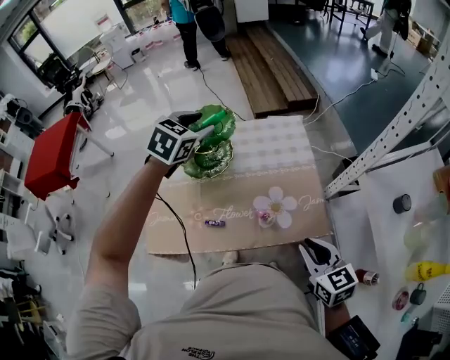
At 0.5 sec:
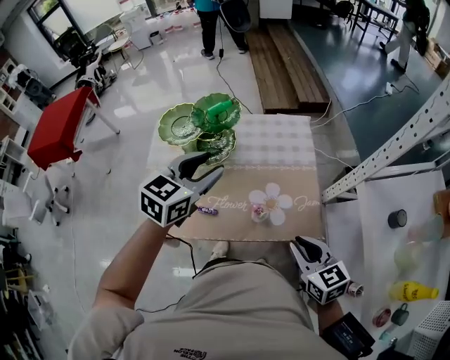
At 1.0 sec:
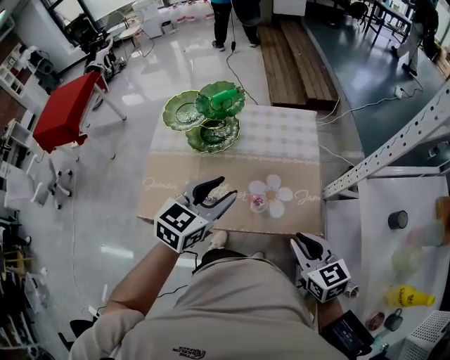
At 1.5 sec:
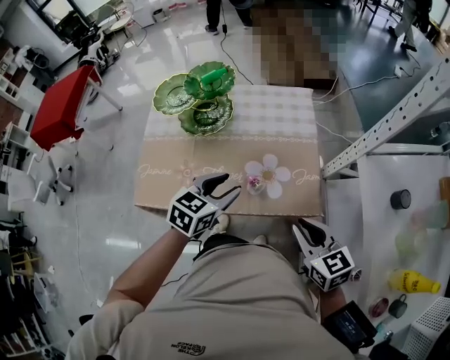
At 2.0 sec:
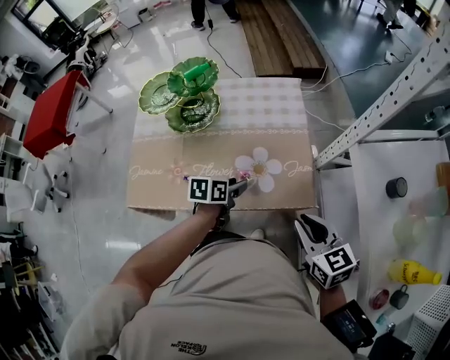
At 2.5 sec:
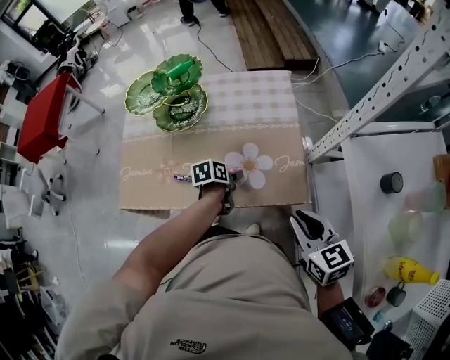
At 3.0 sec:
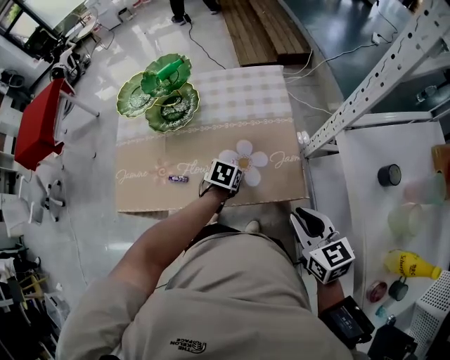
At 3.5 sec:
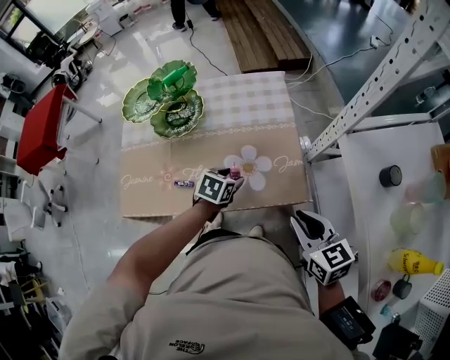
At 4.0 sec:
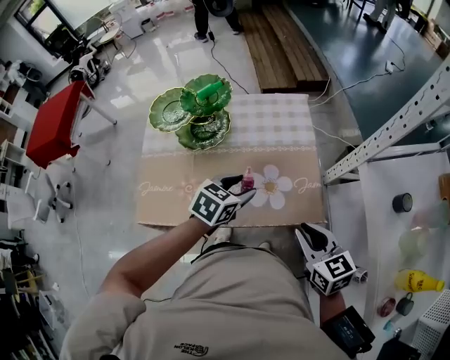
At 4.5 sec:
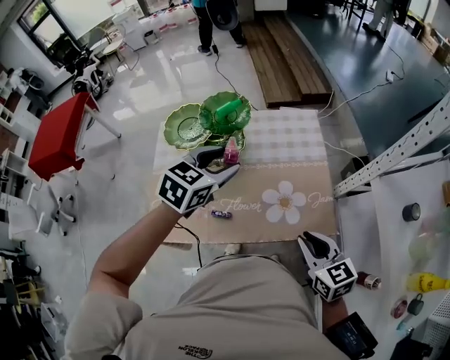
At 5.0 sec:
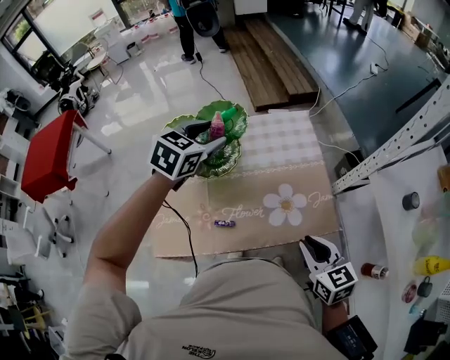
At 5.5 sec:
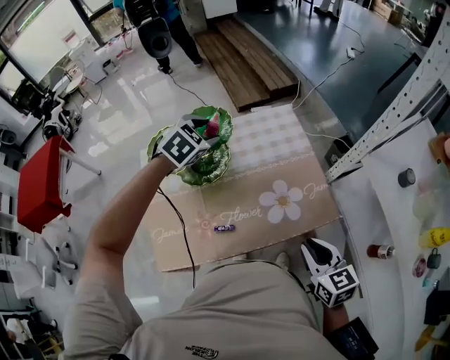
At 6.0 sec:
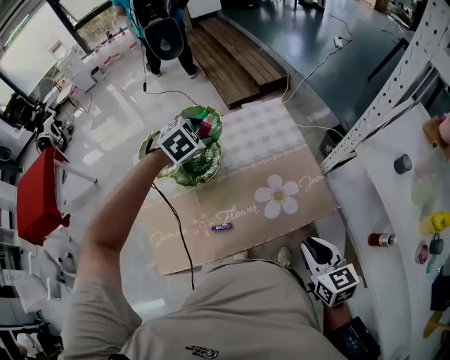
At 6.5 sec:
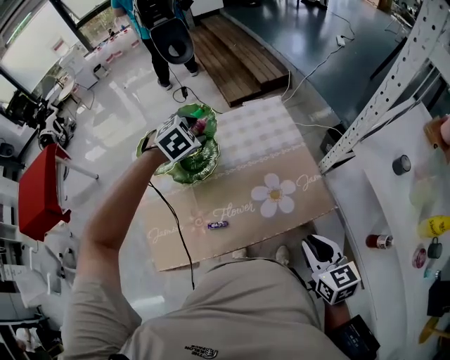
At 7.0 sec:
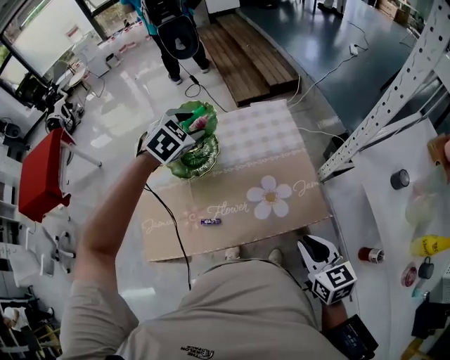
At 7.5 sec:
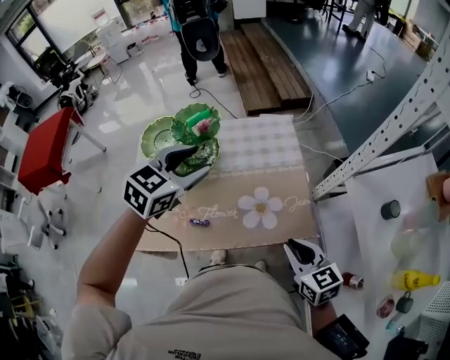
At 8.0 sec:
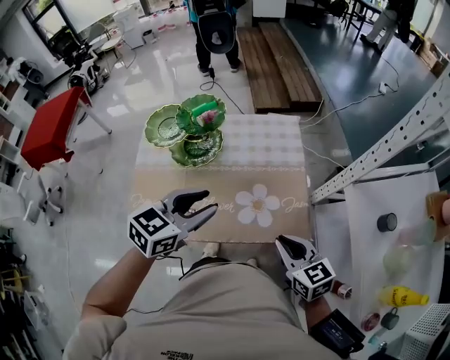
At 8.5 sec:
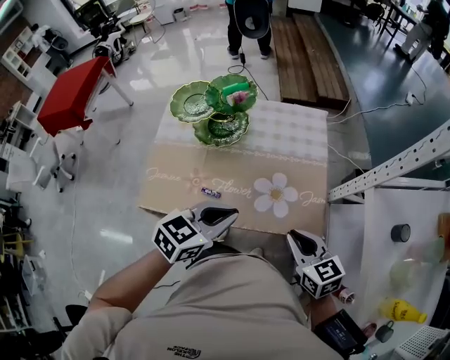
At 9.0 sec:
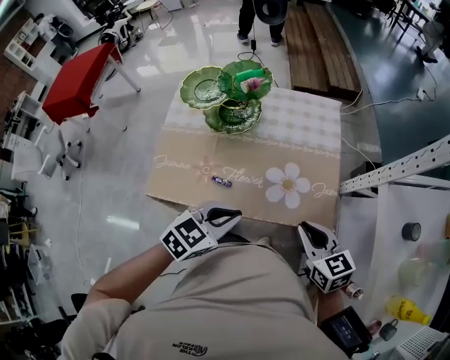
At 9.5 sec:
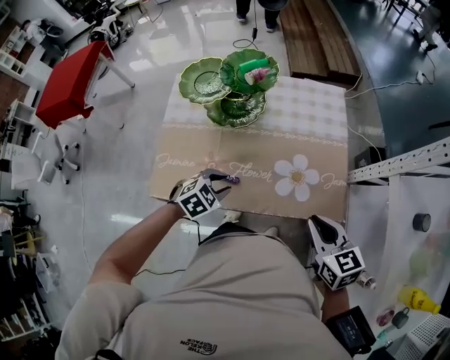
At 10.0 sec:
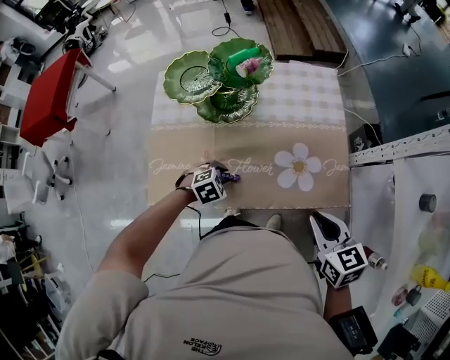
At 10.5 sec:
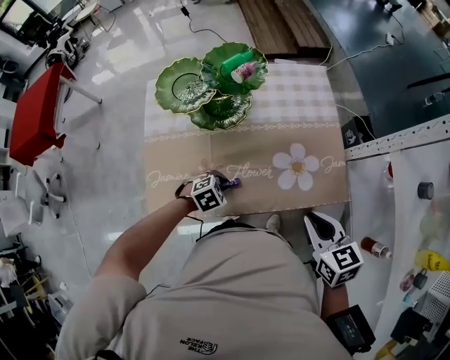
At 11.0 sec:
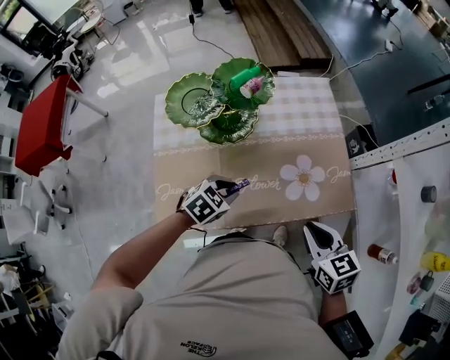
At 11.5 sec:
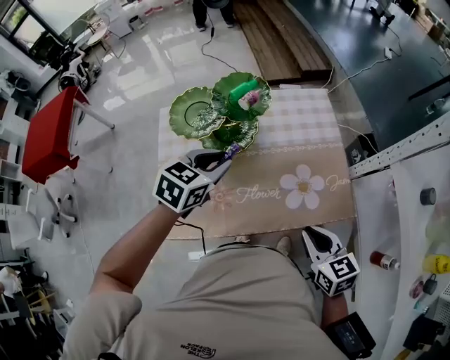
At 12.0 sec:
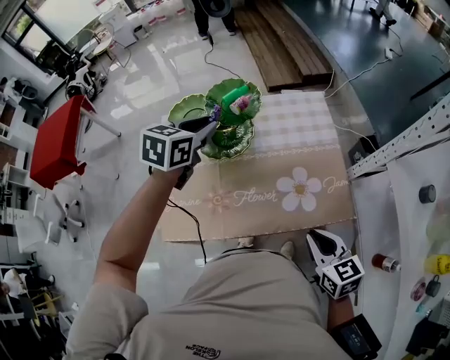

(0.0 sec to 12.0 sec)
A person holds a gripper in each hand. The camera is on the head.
0.0 sec - 2.0 sec: The right gripper is displaced to the right by approximately 5 cm, while the left gripper heads downward, backward and to the right, covering roughly 40 cm, and rotates around the line of its fingers by about 60 degrees, counterclockwise from behind.
2.0 sec - 4.0 sec: The left gripper shifts some 10 cm upward, and turns by about 40 degrees.
4.0 sec - 6.0 sec: The left gripper heads forward and to the left, covering roughly 25 cm, and twists roughly 50 degrees clockwise, seen from behind; the right gripper goes some 10 cm to the left, and turns by some 20 degrees.
6.0 sec - 8.0 sec: The left gripper heads backward, covering approximately 25 cm, and rotates around the line of its fingers by some 40 degrees, counterclockwise from behind. Meanwhile the right gripper moves forward and to the right, roughly 5 cm, and swivels some 30 degrees.
8.0 sec - 10.0 sec: The right gripper goes approximately 5 cm to the left. Meanwhile the left gripper heads downward, covering about 30 cm, points its fingers some 40 degrees further downward, and closes and opens again.
10.0 sec - 12.0 sec: The left gripper shifts approximately 35 cm upward and forward, and tilts its fingers some 30 degrees upward.

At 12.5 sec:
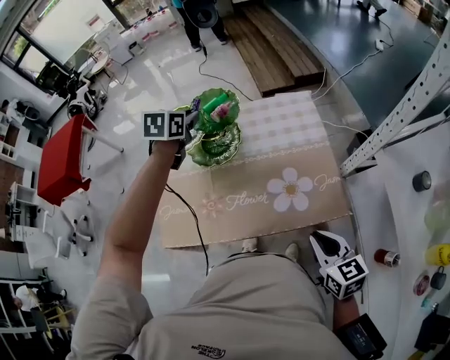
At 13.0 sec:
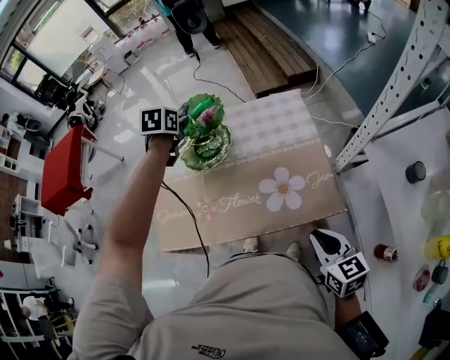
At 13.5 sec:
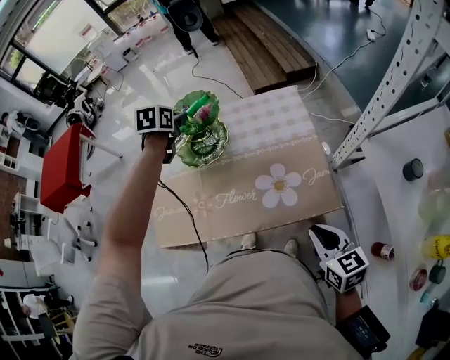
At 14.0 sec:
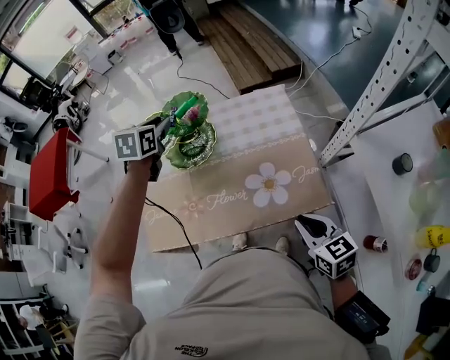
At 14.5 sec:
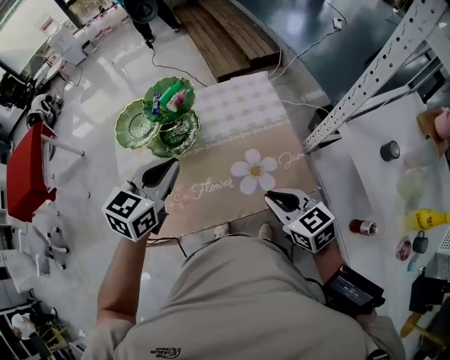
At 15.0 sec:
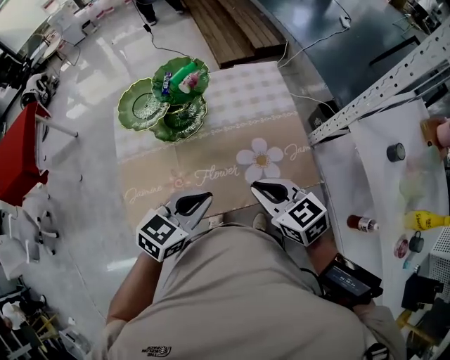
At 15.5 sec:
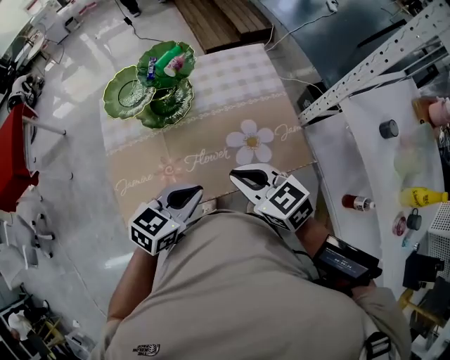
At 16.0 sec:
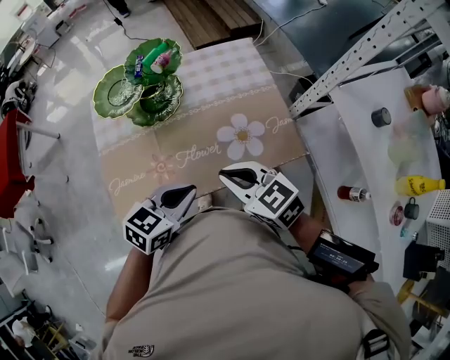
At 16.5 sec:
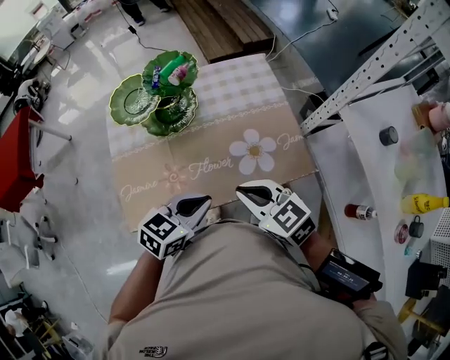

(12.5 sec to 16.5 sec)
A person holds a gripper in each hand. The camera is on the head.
12.5 sec - 14.5 sec: The left gripper heads backward, covering roughly 20 cm, and rotates some 30 degrees. Meanwhile the right gripper is displaced forward by approximately 5 cm.
14.5 sec - 16.5 sec: The right gripper heads to the left, covering roughly 10 cm, while the left gripper travels backward and downward by about 20 cm, and turns by approximately 20 degrees.

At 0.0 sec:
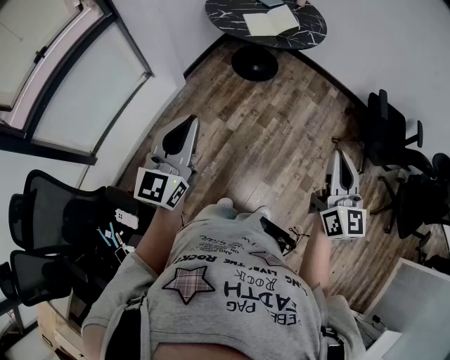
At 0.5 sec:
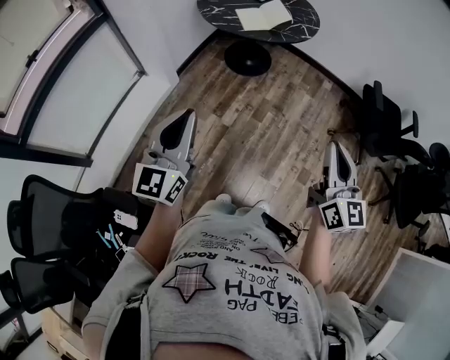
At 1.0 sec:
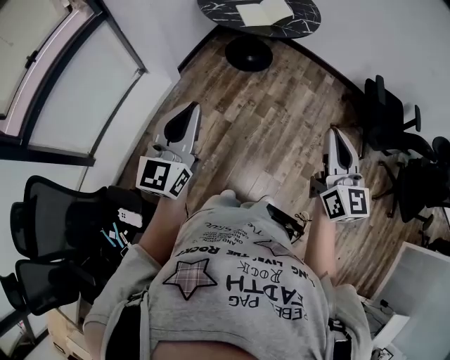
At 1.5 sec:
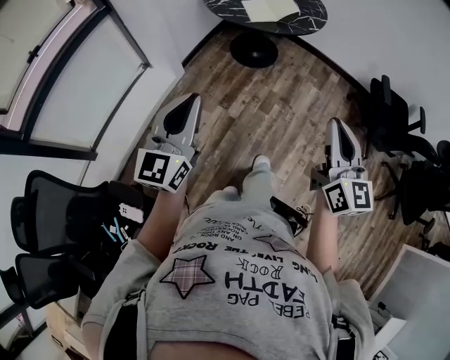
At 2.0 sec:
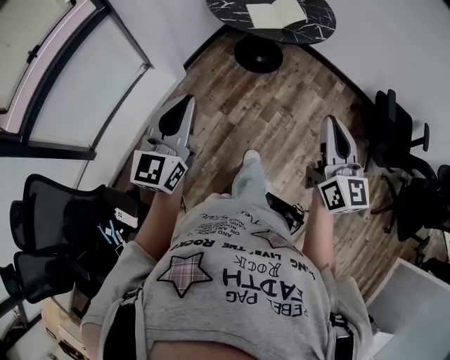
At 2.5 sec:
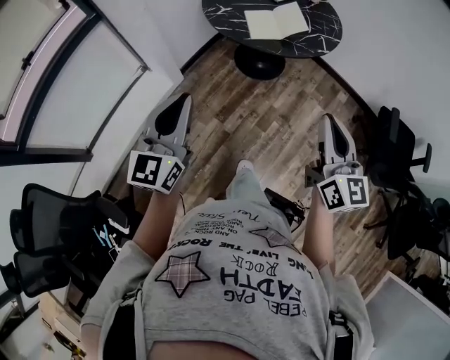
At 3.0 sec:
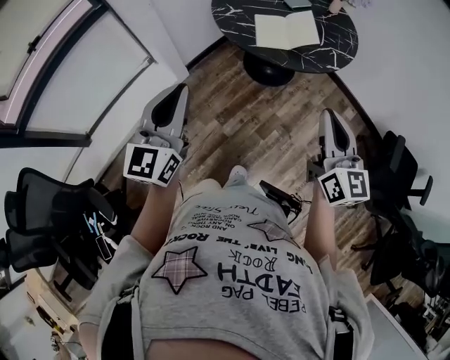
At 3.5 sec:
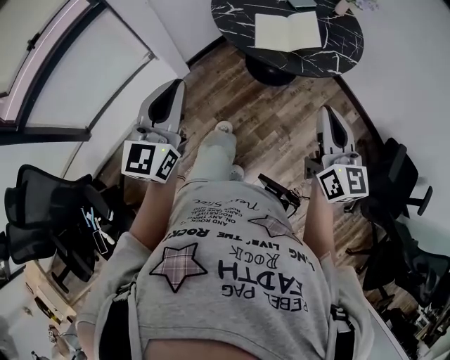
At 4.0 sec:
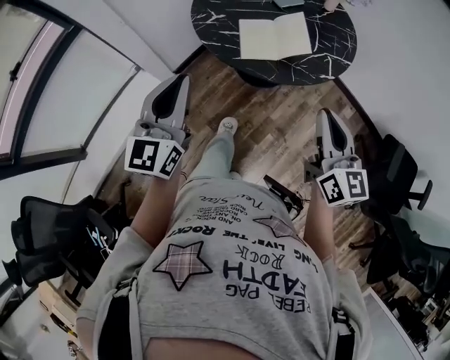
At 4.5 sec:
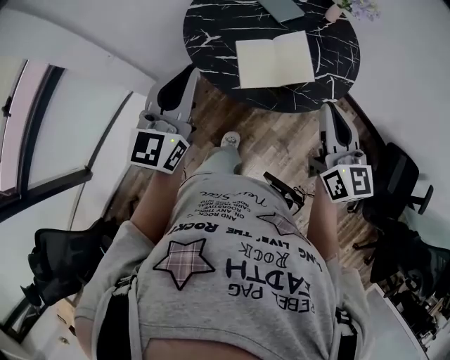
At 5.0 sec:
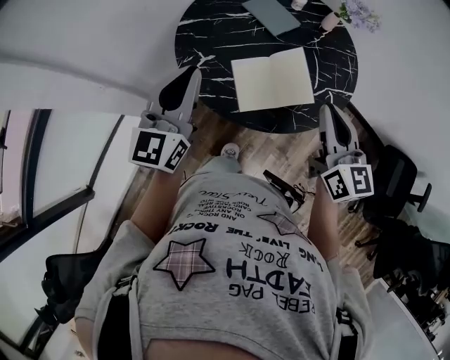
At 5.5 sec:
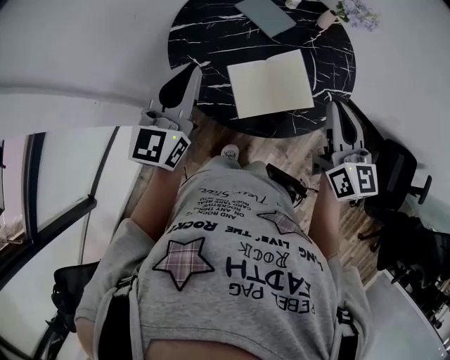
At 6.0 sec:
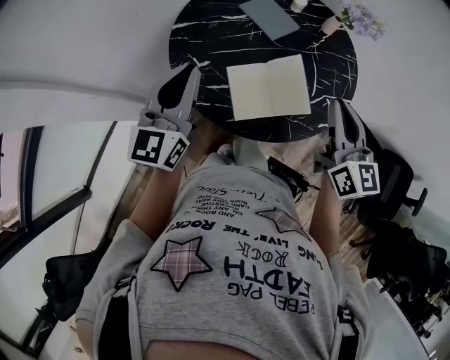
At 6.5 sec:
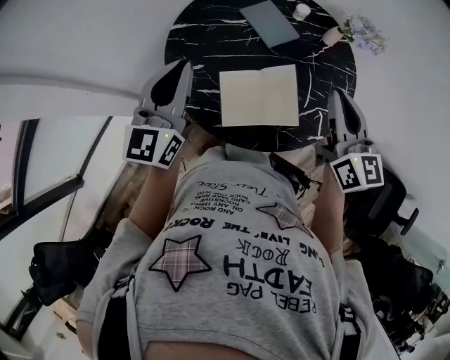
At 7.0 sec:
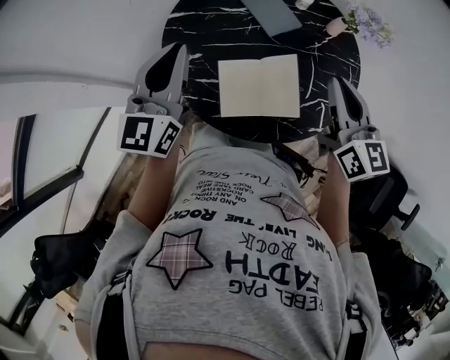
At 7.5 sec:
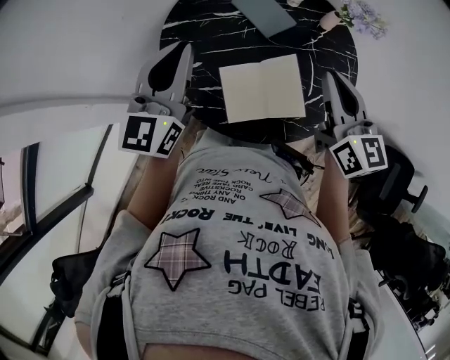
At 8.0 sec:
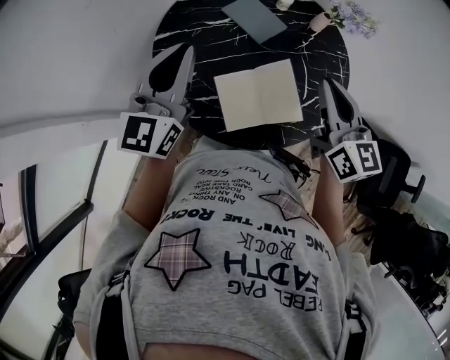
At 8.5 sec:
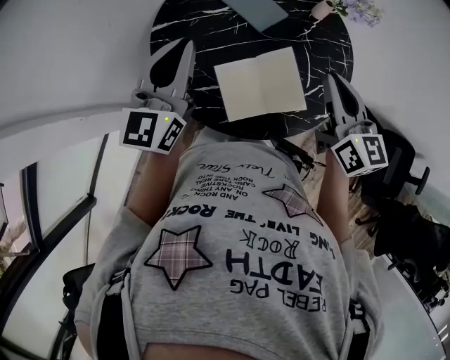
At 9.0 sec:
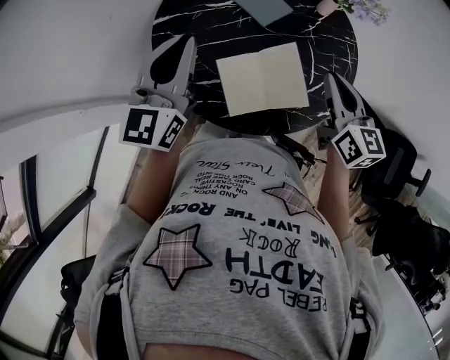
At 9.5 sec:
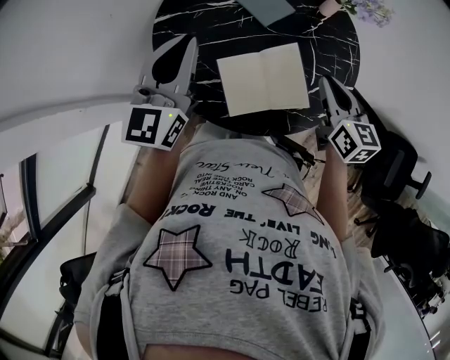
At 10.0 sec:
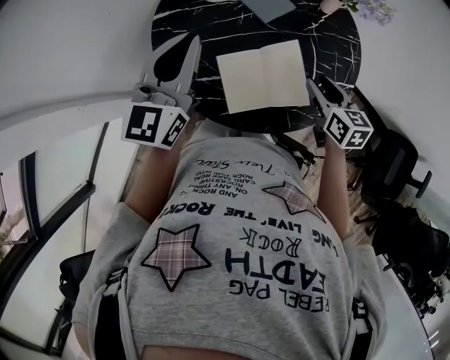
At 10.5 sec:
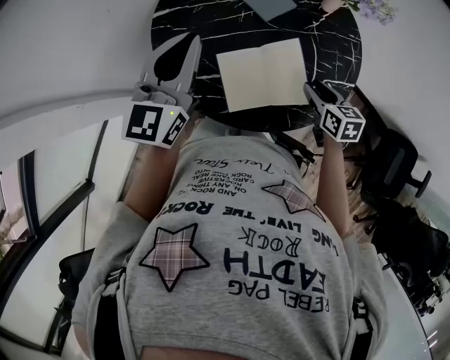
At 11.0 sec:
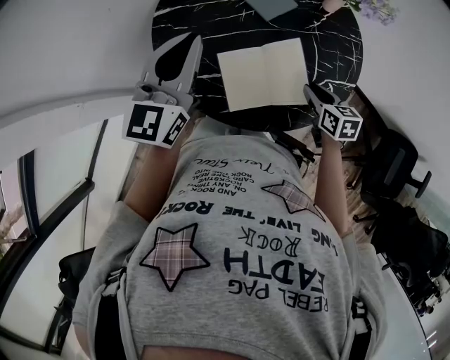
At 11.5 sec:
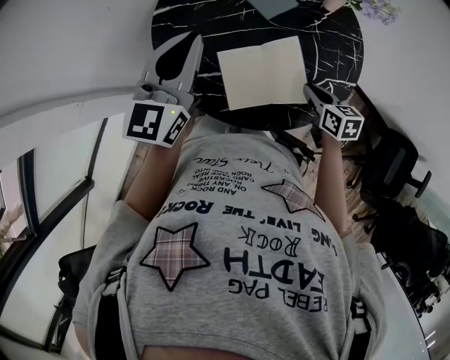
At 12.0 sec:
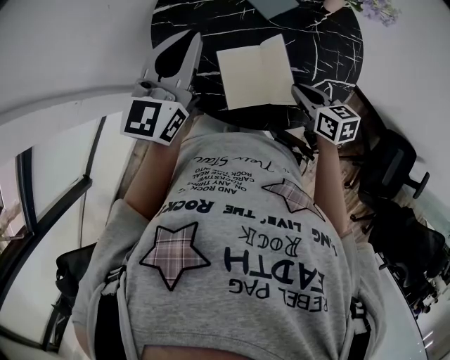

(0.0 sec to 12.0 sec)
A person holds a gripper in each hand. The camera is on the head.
0.0 sec - 2.0 sec: Both grippers move forward, roughly 10 cm.
2.0 sec - 4.0 sec: The grippers both shift forward by approximately 35 cm.
4.0 sec - 6.0 sec: The grippers both shift forward by about 30 cm.
6.0 sec - 8.0 sec: Both grippers move forward, approximately 10 cm.
8.0 sec - 10.0 sec: The right gripper moves downward, roughly 20 cm, turns by approximately 30 degrees, and opens up.
10.0 sec - 12.0 sec: The right gripper moves roughly 5 cm, and closes its fingers.
